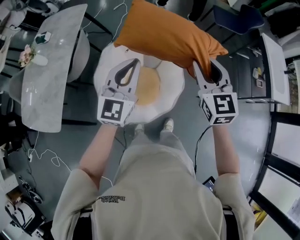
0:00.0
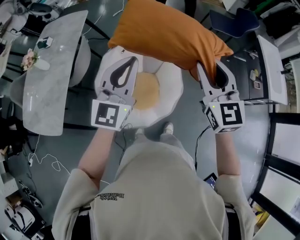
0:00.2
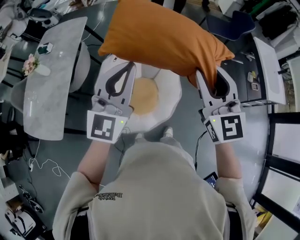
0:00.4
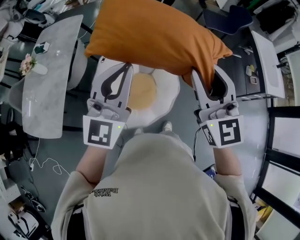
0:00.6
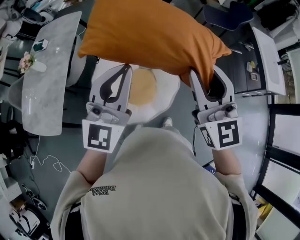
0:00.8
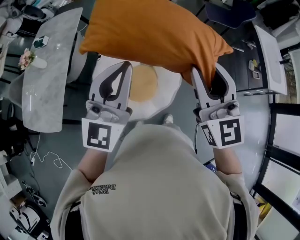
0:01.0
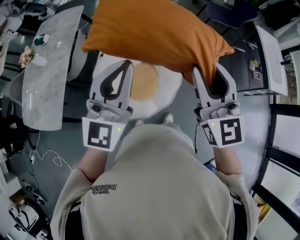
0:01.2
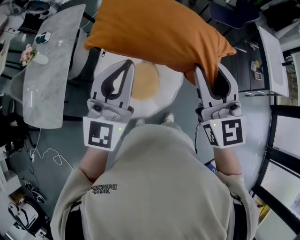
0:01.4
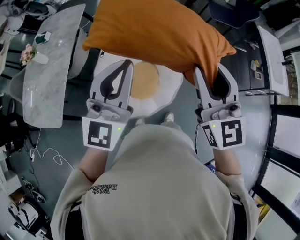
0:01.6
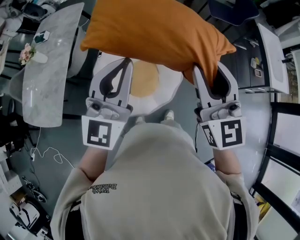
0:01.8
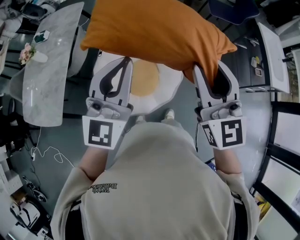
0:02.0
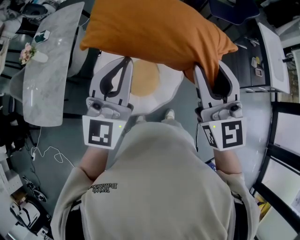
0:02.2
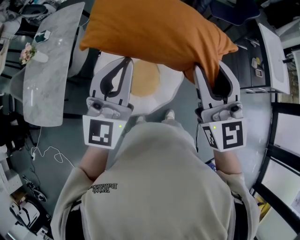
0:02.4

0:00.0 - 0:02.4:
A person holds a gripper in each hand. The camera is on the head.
0:00.0 - 0:01.2: The grippers both shift upward and backward by about 15 cm.
0:01.2 - 0:02.4: There are only small adjustments of the grippers.

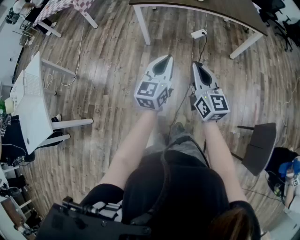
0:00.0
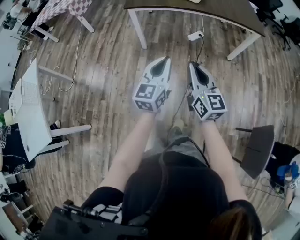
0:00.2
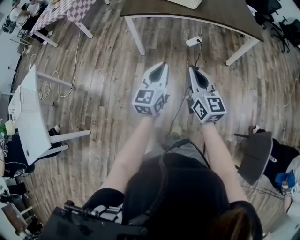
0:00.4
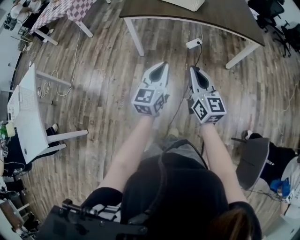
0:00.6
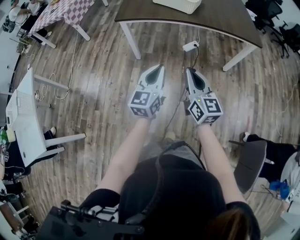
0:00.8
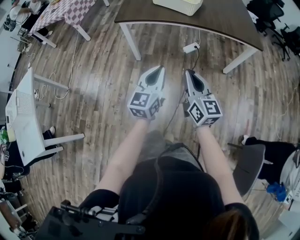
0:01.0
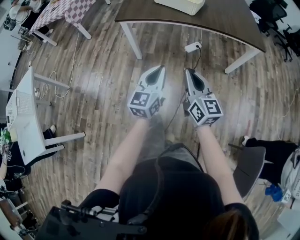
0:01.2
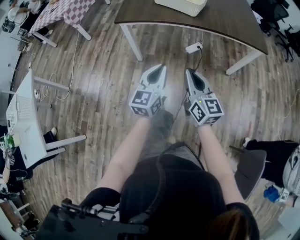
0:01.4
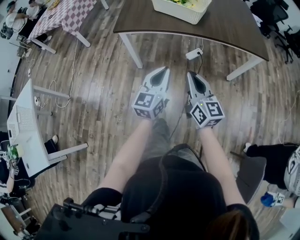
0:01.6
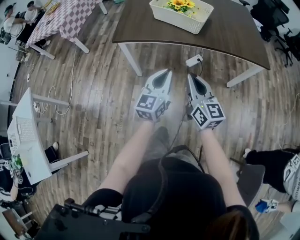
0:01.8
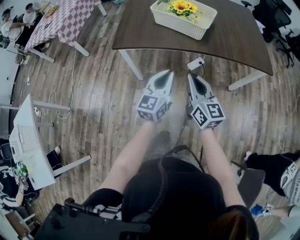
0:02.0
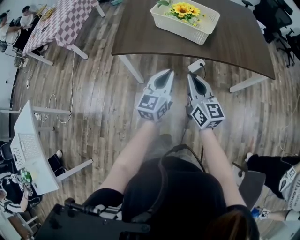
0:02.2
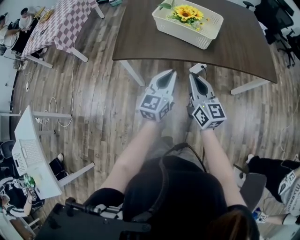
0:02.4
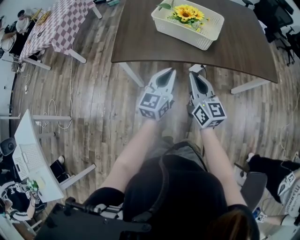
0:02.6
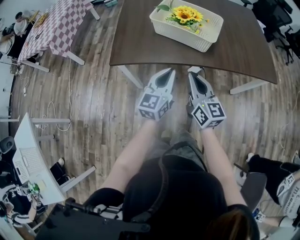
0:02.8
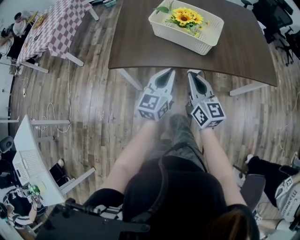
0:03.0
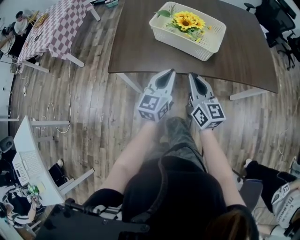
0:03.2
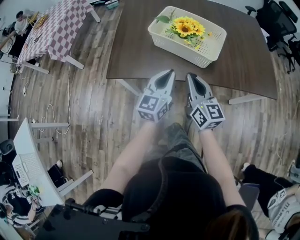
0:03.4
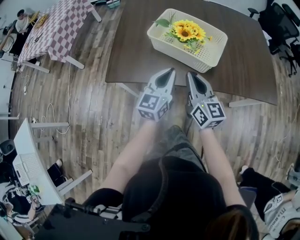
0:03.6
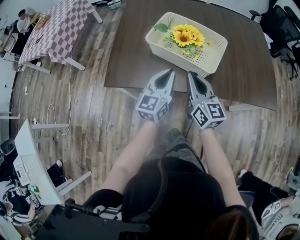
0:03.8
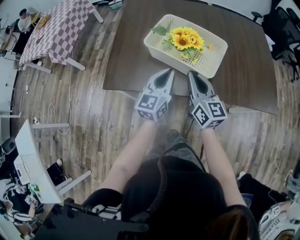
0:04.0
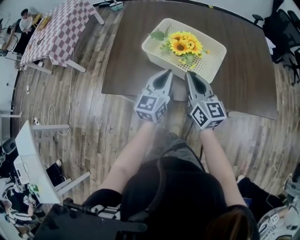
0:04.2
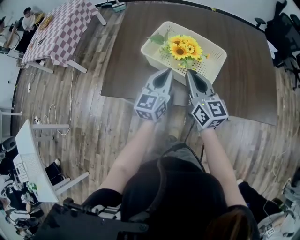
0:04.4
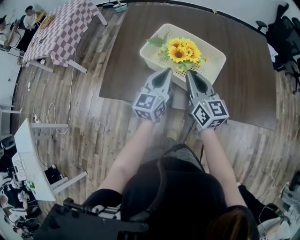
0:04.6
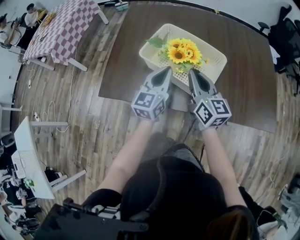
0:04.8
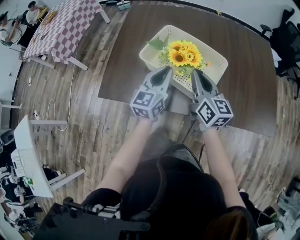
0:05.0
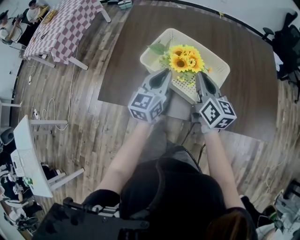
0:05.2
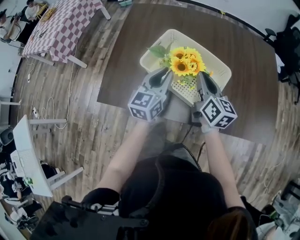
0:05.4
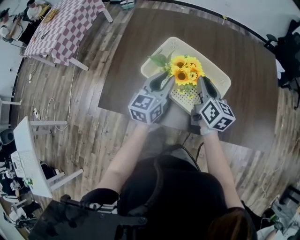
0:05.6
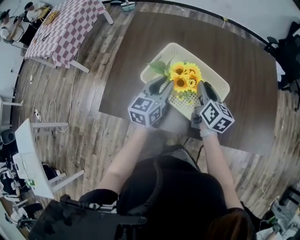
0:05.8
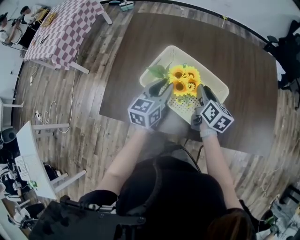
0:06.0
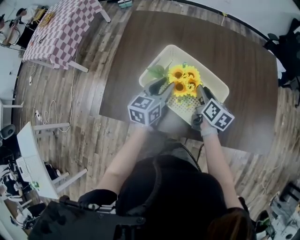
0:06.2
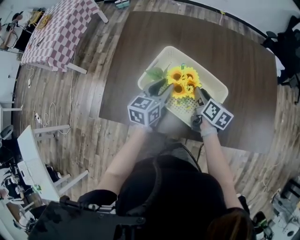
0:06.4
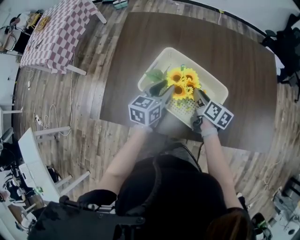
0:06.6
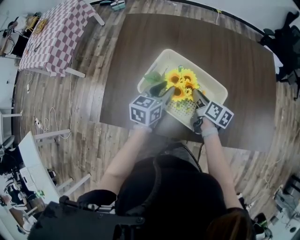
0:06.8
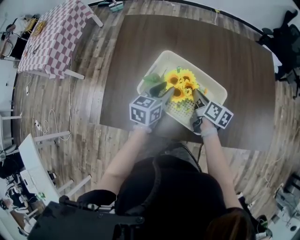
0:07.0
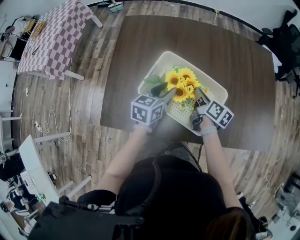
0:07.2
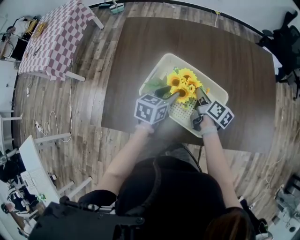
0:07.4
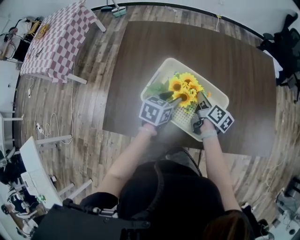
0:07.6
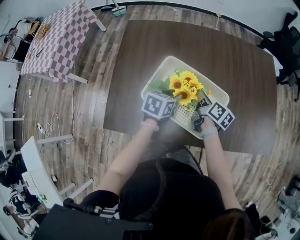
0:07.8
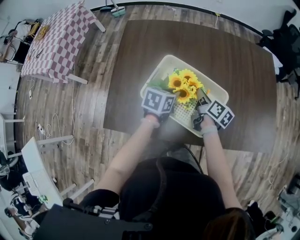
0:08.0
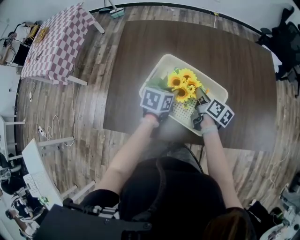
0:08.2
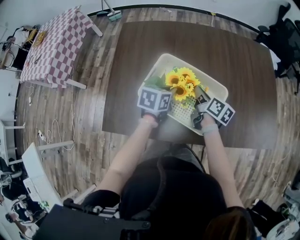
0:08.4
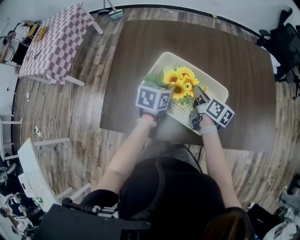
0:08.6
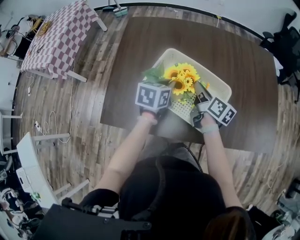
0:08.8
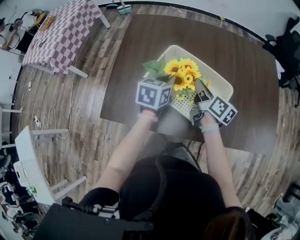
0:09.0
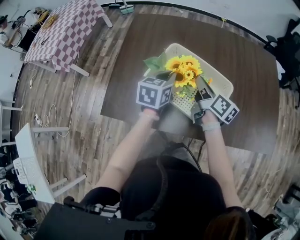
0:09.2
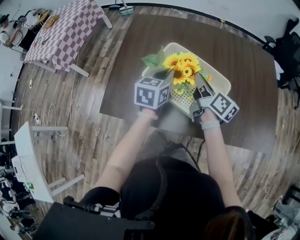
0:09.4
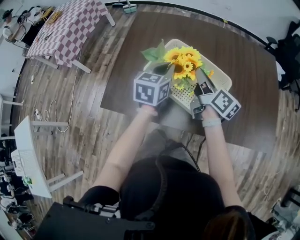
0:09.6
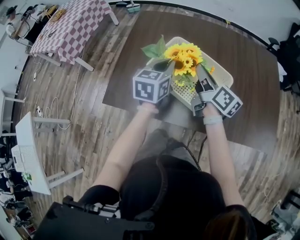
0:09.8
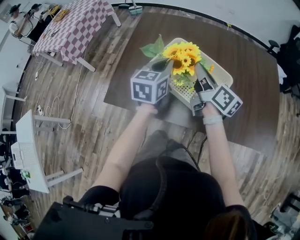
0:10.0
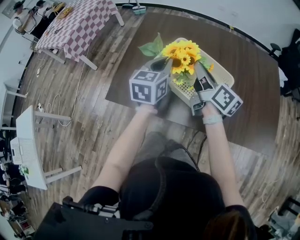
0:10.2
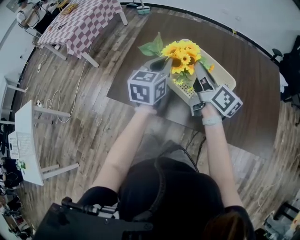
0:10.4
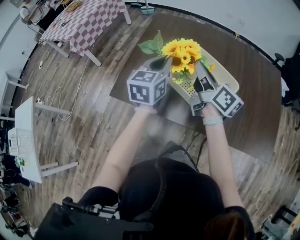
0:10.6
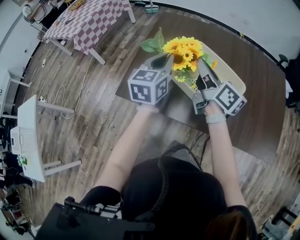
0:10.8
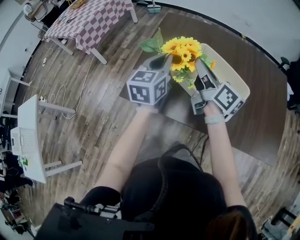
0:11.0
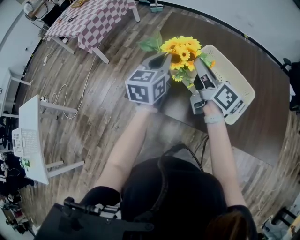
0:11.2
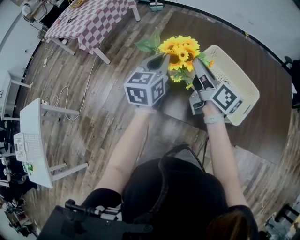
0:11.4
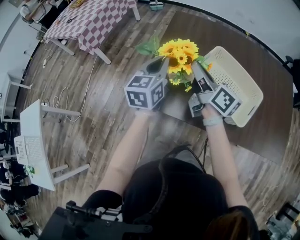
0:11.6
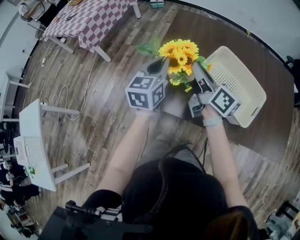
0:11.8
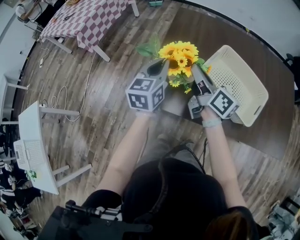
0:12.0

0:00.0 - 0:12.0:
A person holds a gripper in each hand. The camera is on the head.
0:00.0 - 0:01.6: Both grippers travel together forward, roughly 20 cm.
0:01.6 - 0:03.0: The two grippers go some 25 cm forward.
0:03.0 - 0:04.4: The two grippers go roughly 20 cm forward.
0:04.4 - 0:06.0: The left gripper travels forward by some 10 cm, and opens. The right gripper shifts roughly 20 cm forward, downward and to the right, swivels about 30 degrees, and opens.
0:06.0 - 0:07.6: The right gripper rotates some 20 degrees, and closes its fingers. Meanwhile the left gripper heads downward, covering about 5 cm, and changes its angle by roughly 30 degrees.
0:07.6 - 0:09.0: The right gripper shifts by approximately 5 cm; the left gripper closes up.
0:09.0 - 0:10.4: The left gripper moves upward and backward, some 10 cm, and swivels roughly 30 degrees. The right gripper is displaced upward by some 10 cm.
0:10.4 - 0:12.0: The two grippers go roughly 20 cm to the left.

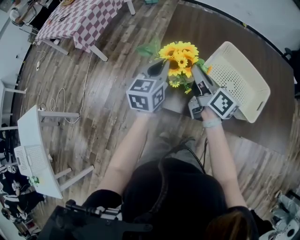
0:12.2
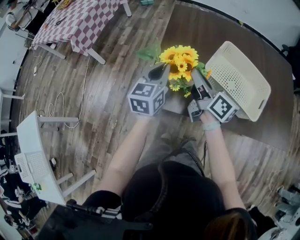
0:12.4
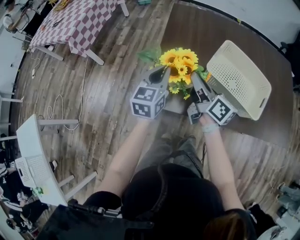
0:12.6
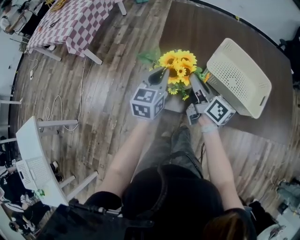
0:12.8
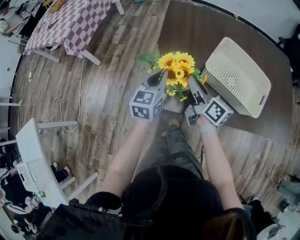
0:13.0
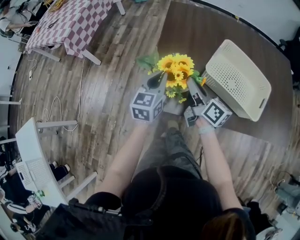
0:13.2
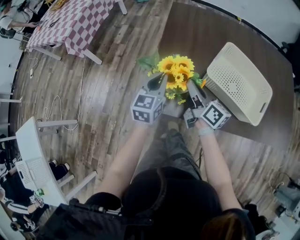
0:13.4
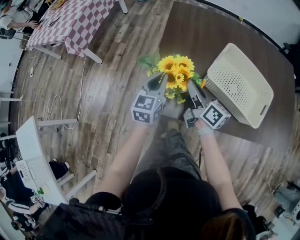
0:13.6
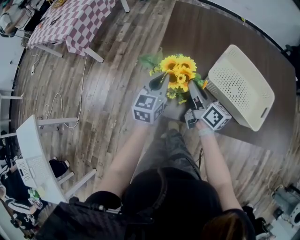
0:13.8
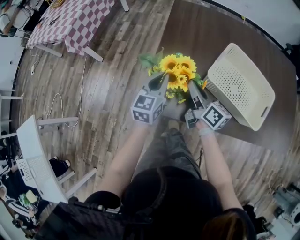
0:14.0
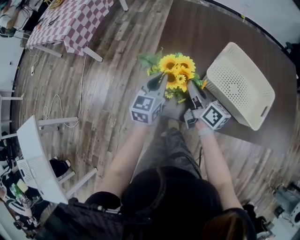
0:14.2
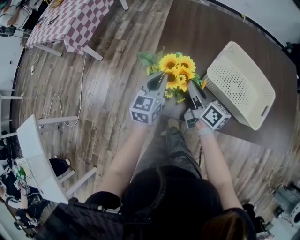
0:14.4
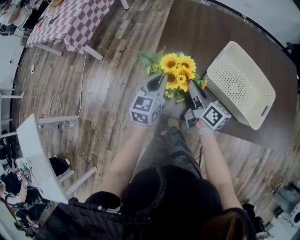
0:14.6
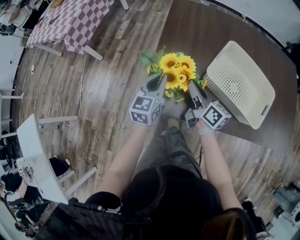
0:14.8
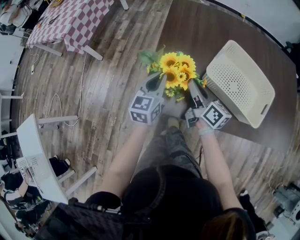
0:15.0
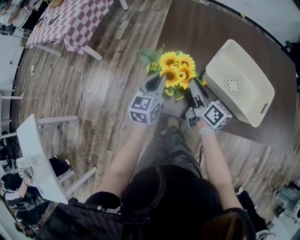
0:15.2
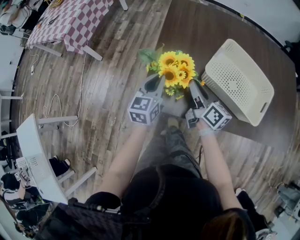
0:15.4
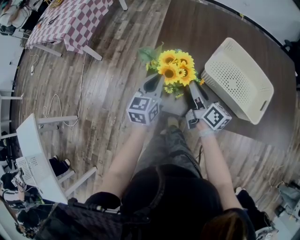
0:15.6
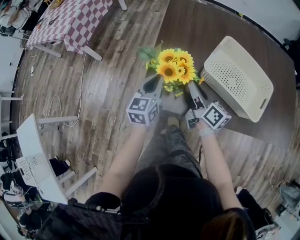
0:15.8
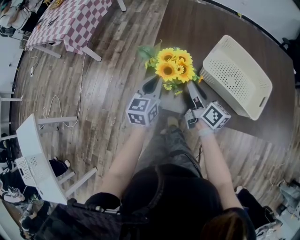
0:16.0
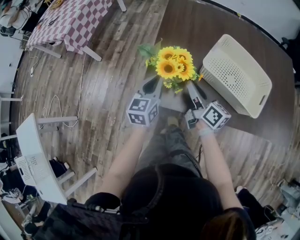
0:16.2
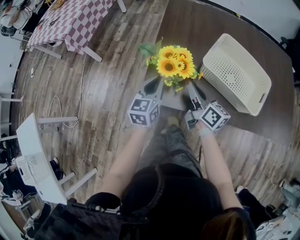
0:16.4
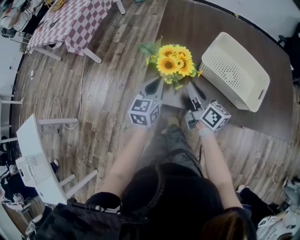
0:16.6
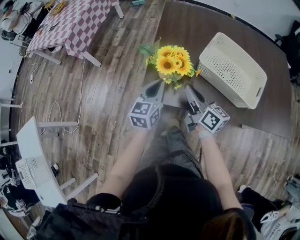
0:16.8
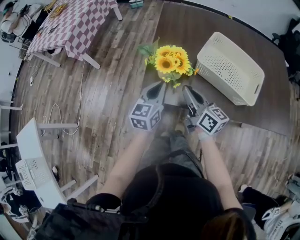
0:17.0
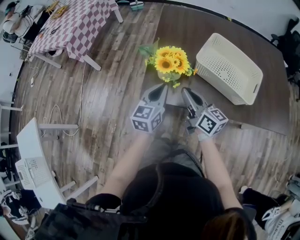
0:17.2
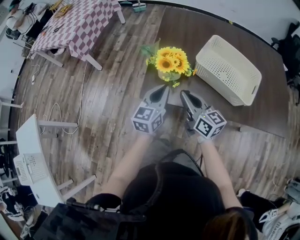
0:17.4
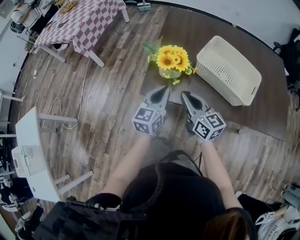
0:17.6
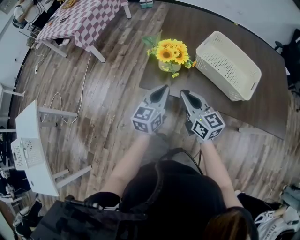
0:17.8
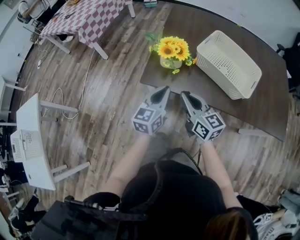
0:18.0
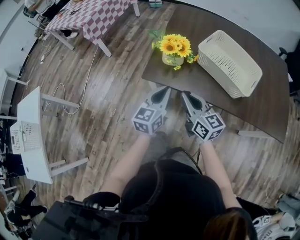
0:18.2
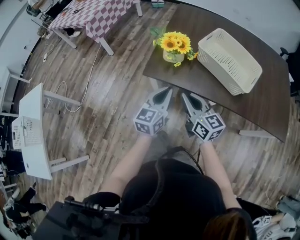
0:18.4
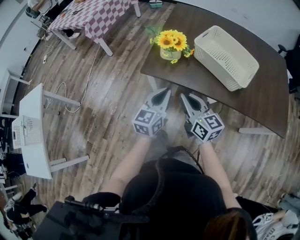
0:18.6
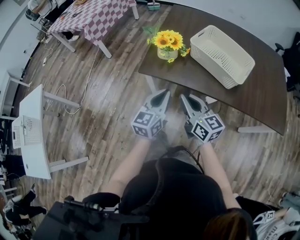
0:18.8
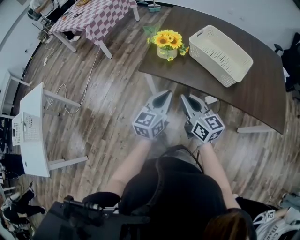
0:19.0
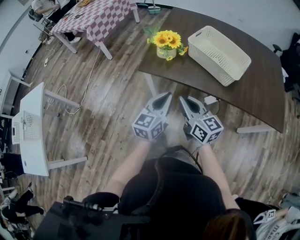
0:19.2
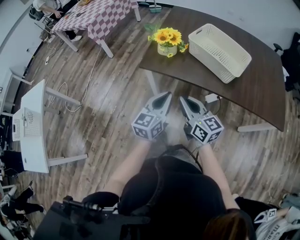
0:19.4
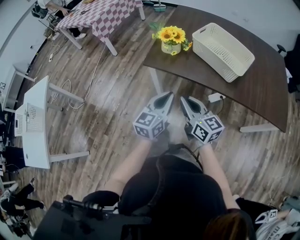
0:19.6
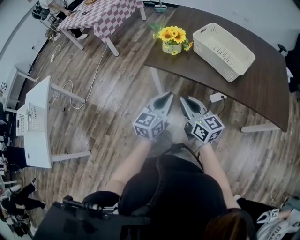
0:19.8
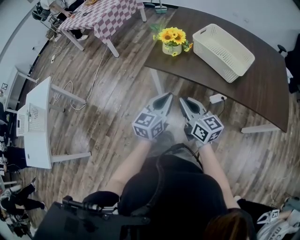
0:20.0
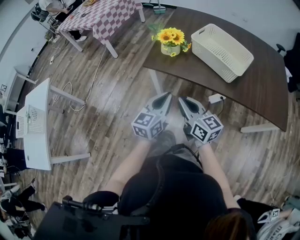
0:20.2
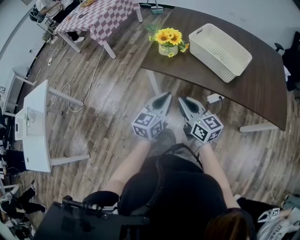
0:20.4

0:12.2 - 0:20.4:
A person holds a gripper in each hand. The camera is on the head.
0:12.2 - 0:13.8: Both grippers travel together downward, some 10 cm.
0:13.8 - 0:15.4: There are only small adjustments of the grippers.
0:15.4 - 0:17.2: The two grippers go some 10 cm backward.
0:17.2 - 0:18.8: Both grippers move backward, about 20 cm.
0:18.8 - 0:20.4: The grippers both shift backward by approximately 5 cm.

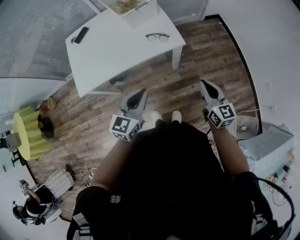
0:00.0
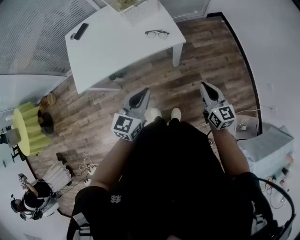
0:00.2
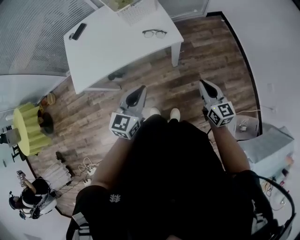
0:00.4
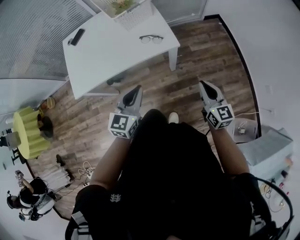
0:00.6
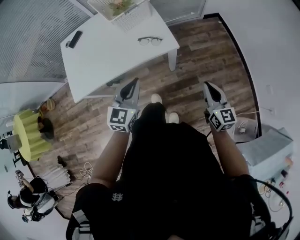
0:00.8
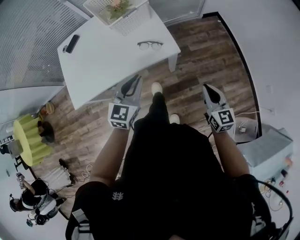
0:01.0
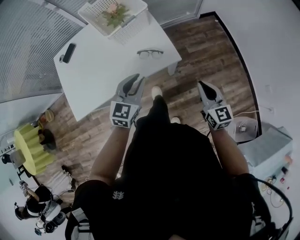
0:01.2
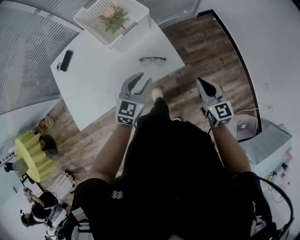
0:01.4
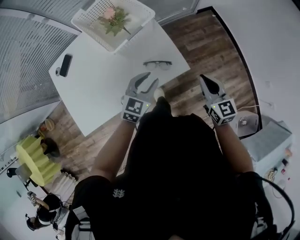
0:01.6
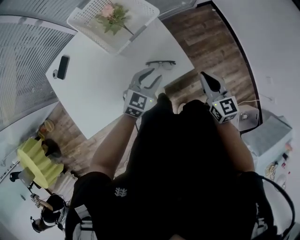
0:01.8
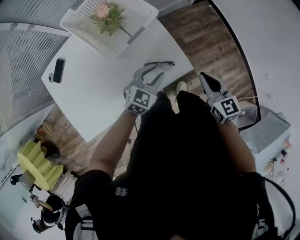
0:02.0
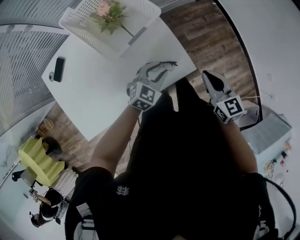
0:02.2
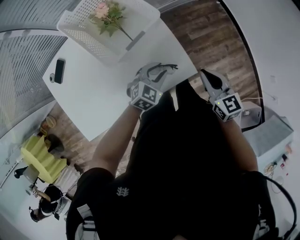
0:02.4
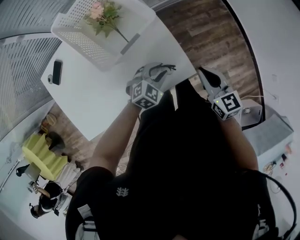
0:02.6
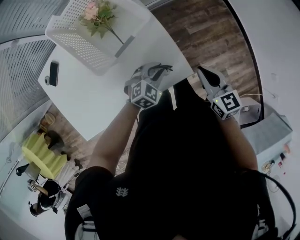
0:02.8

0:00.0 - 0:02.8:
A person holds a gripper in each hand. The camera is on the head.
0:00.0 - 0:01.4: Both grippers travel together forward, roughly 25 cm. The left gripper opens its fingers.
0:01.4 - 0:02.8: The left gripper goes some 20 cm downward and forward, and changes its angle by about 30 degrees. The right gripper moves forward and downward, about 15 cm.
